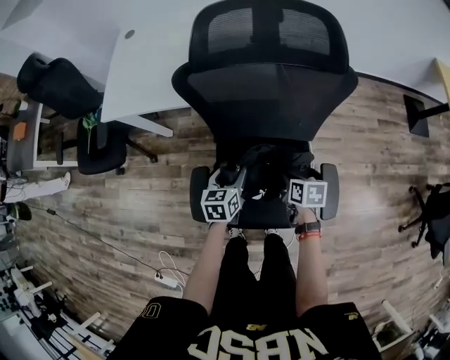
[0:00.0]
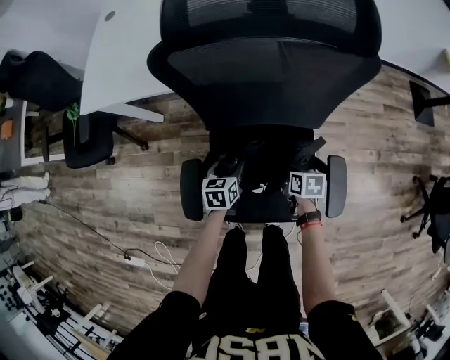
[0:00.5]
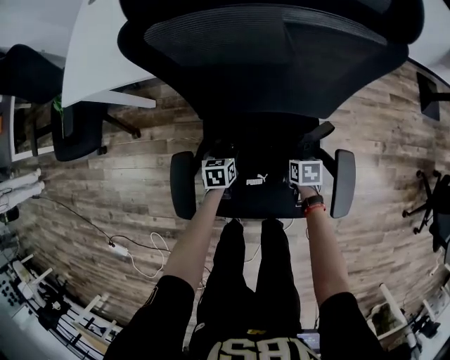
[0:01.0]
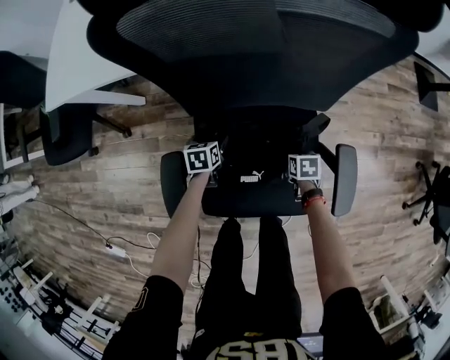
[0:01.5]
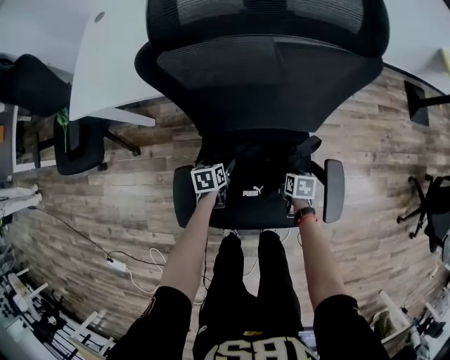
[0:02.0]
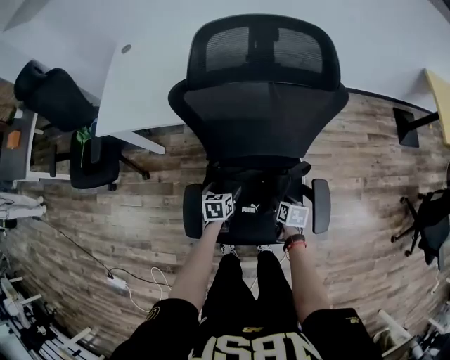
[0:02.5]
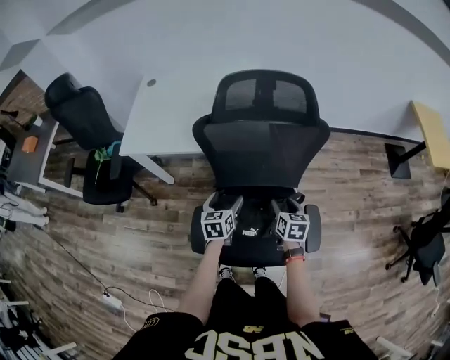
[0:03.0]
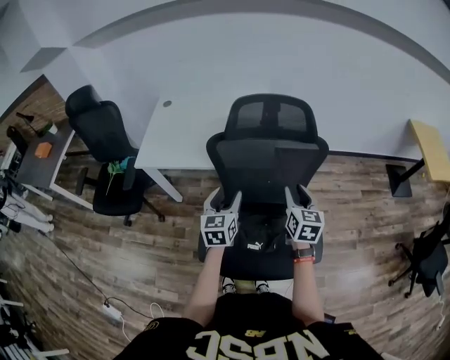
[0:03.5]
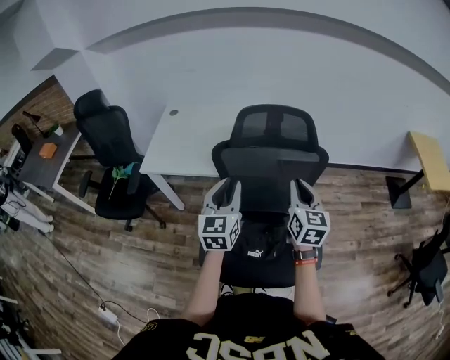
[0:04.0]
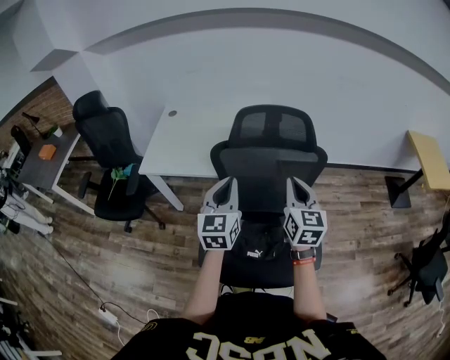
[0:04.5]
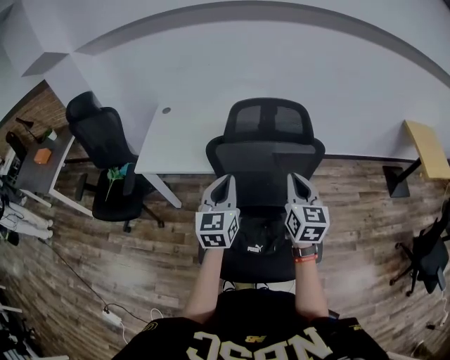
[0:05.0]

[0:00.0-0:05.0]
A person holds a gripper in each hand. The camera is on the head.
0:00.0 to 0:02.5: Both grippers travel together downward, roughly 10 cm. The left gripper opens. Meanwhile the right gripper opens.
0:02.5 to 0:05.0: Both grippers move upward, roughly 50 cm. The left gripper points its fingers approximately 50 degrees further upward, and closes. The right gripper points its fingers some 50 degrees further upward, and closes up.

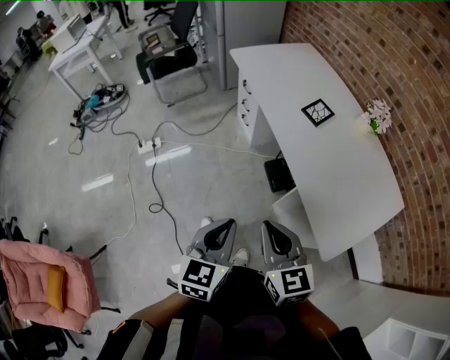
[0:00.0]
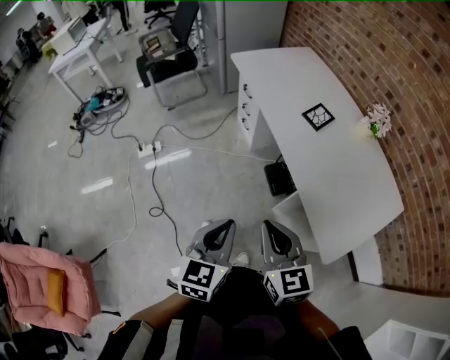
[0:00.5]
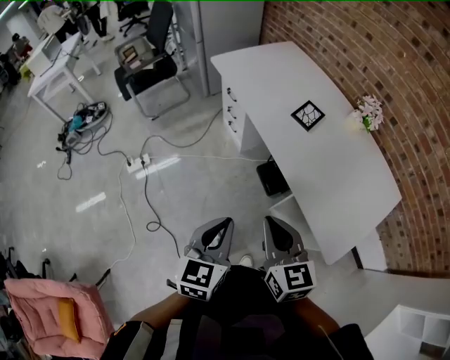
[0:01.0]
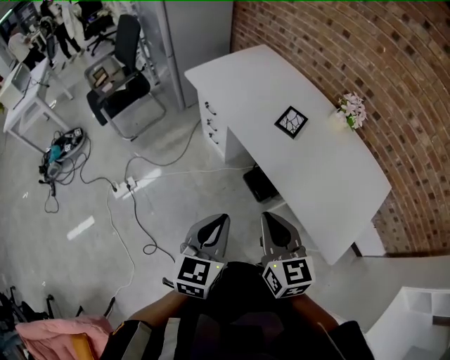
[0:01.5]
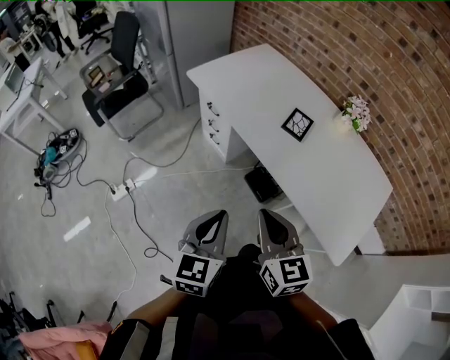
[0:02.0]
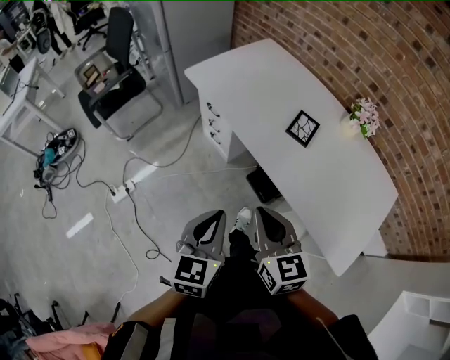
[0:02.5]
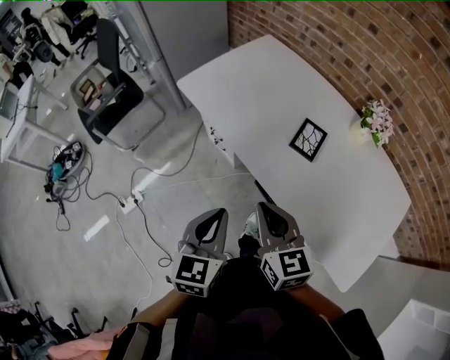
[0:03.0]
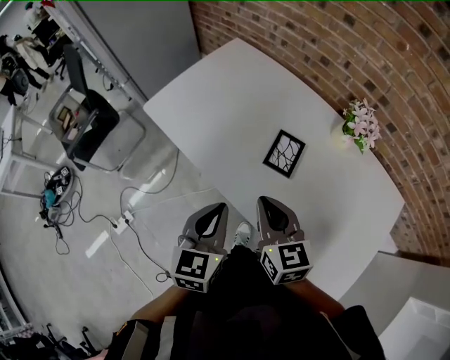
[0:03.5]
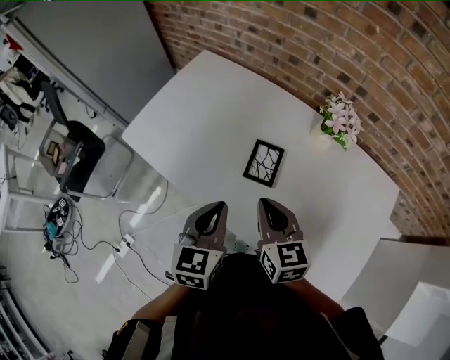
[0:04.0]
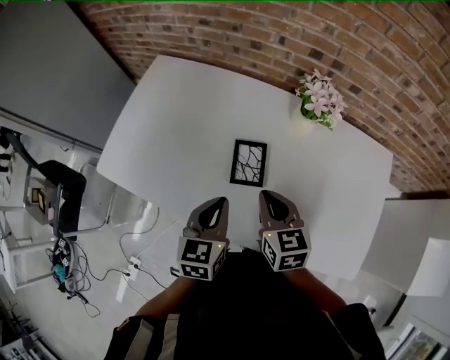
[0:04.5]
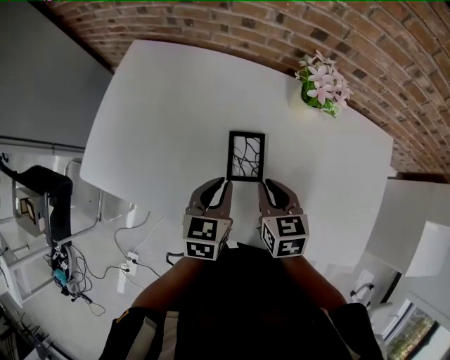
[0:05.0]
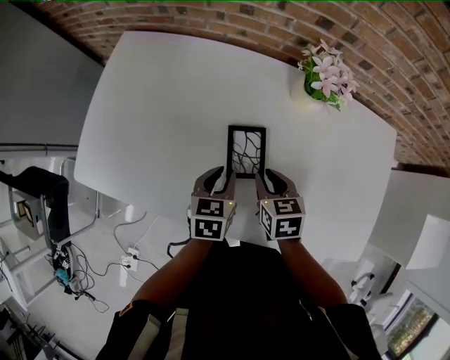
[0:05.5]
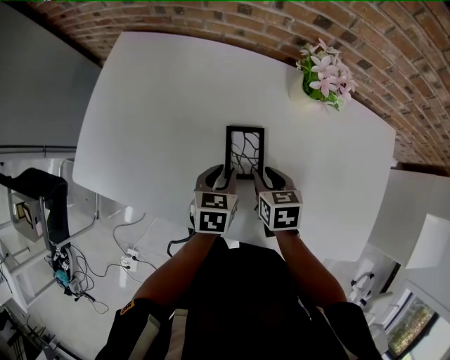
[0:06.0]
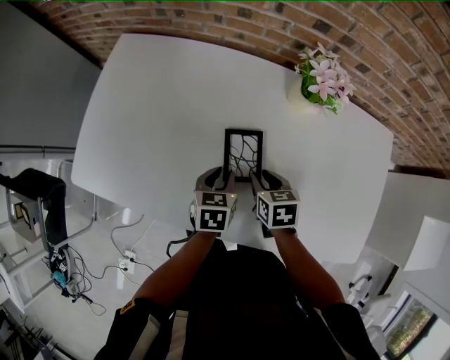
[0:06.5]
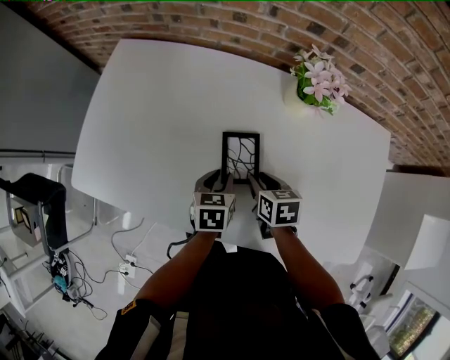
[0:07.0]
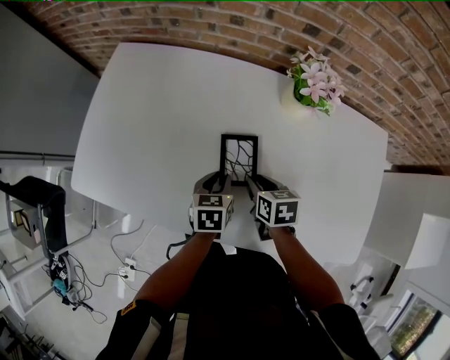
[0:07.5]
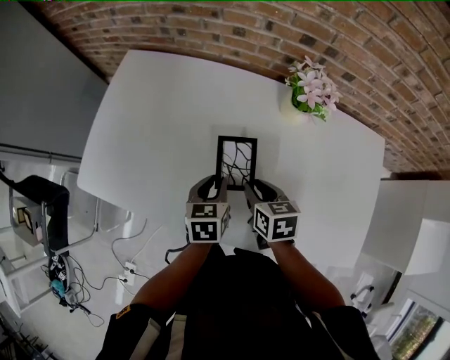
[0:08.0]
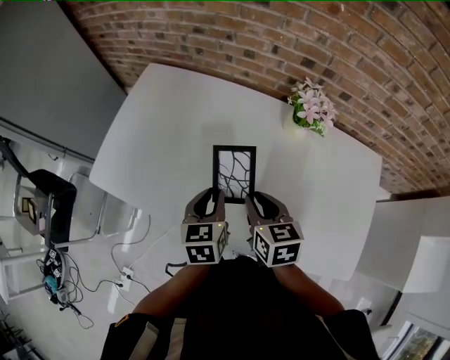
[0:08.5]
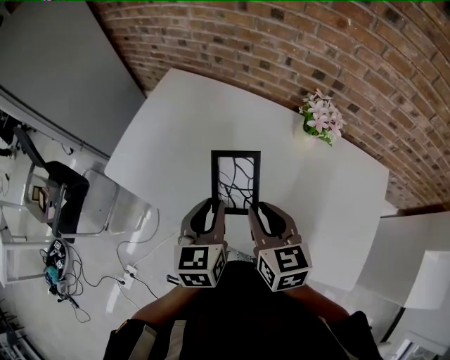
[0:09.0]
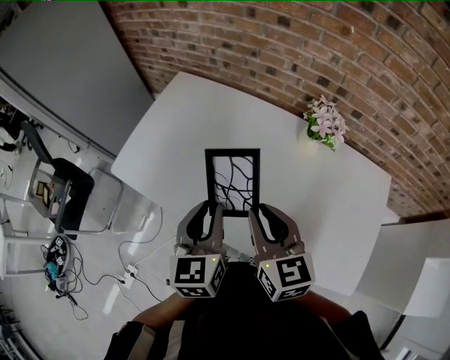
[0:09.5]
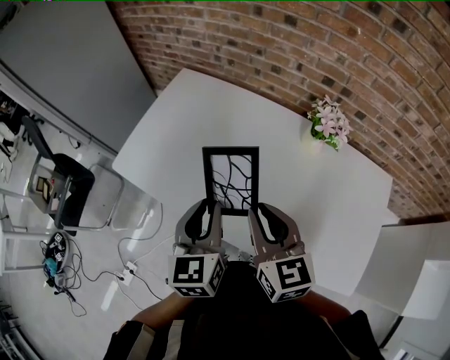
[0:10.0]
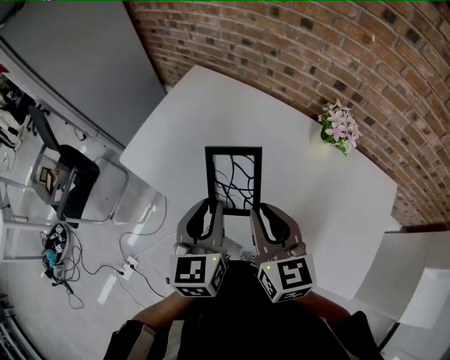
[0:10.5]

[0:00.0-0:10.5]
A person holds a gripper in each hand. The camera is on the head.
0:00.0 to 0:02.0: Both grippers move forward and to the left, approximately 20 cm. The right gripper rotates roughly 20 degrees.
0:02.0 to 0:04.0: The grippers both shift forward and to the right by approximately 35 cm.
0:04.0 to 0:06.5: The grippers both shift downward and forward by about 25 cm. The right gripper angles its fingers downward, by roughly 30 degrees, and opens up. The left gripper swivels some 30 degrees, and opens.
0:06.5 to 0:08.5: Both grippers move upward, some 15 cm. The left gripper rotates roughly 20 degrees.
0:08.5 to 0:10.5: The right gripper moves upward and to the left, approximately 15 cm, and changes its angle by roughly 20 degrees; the left gripper moves upward, to the left and backward, roughly 15 cm, and rotates roughly 20 degrees.

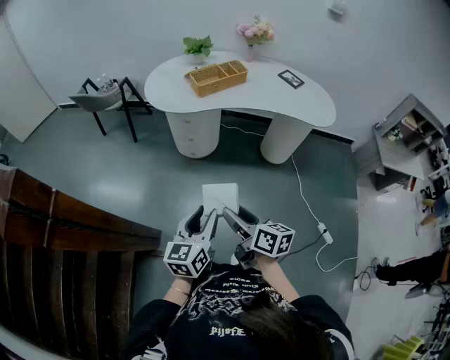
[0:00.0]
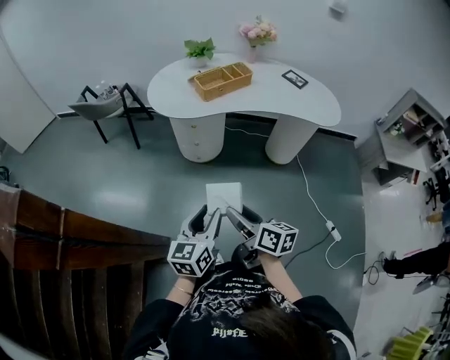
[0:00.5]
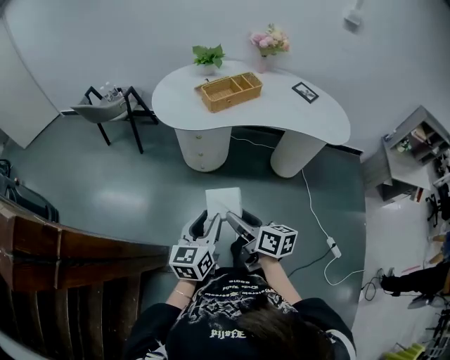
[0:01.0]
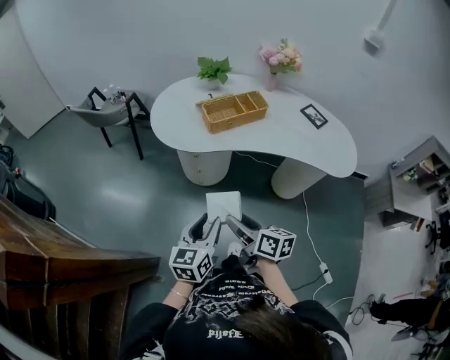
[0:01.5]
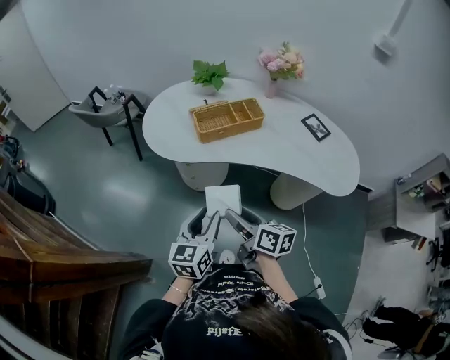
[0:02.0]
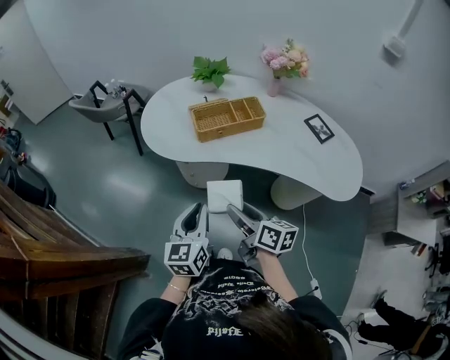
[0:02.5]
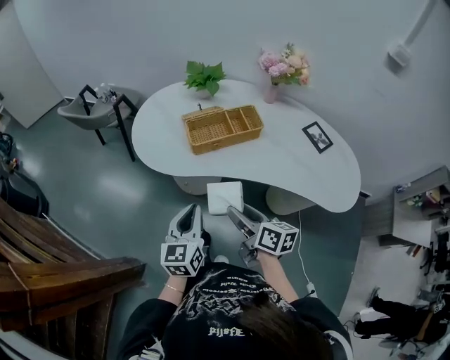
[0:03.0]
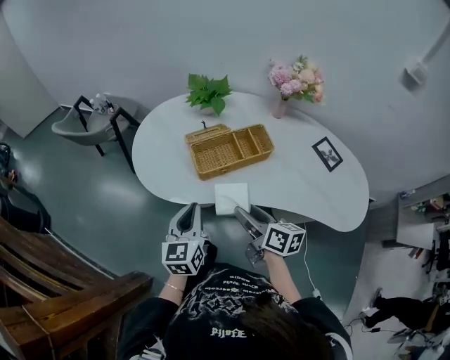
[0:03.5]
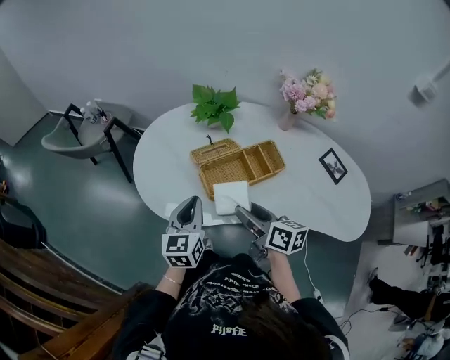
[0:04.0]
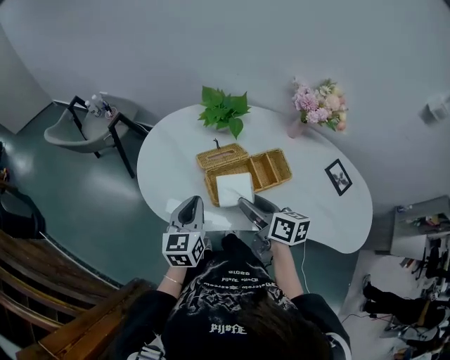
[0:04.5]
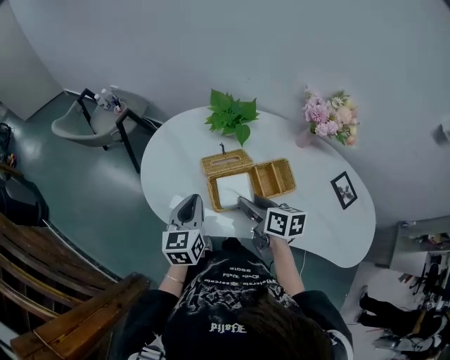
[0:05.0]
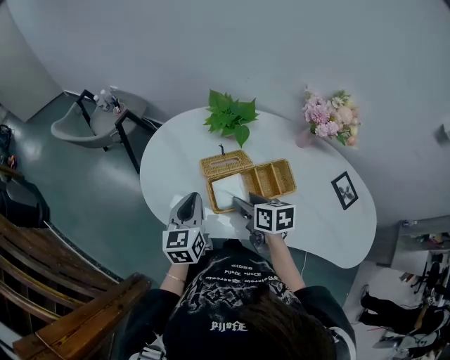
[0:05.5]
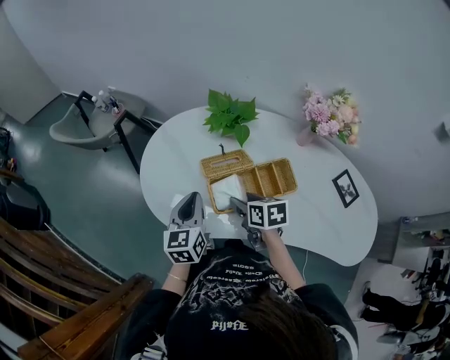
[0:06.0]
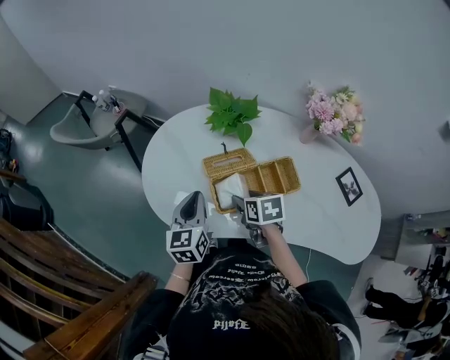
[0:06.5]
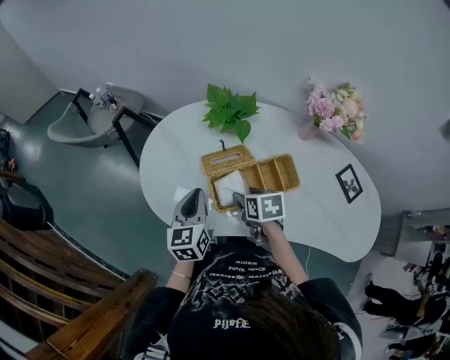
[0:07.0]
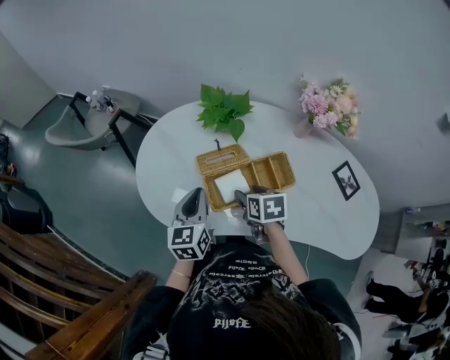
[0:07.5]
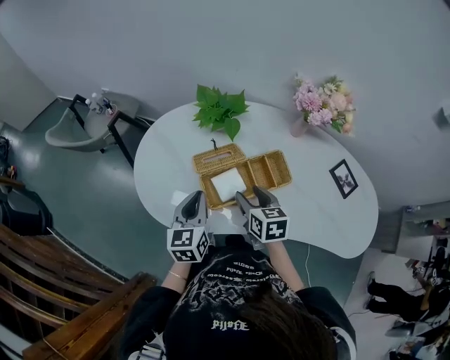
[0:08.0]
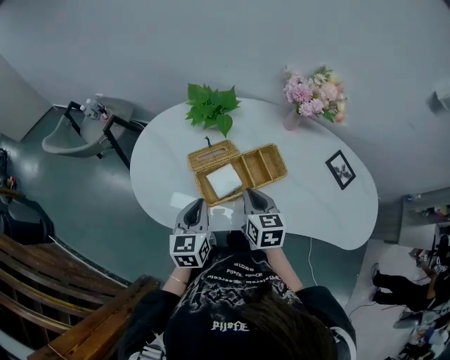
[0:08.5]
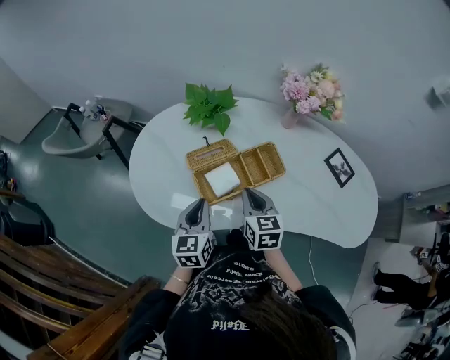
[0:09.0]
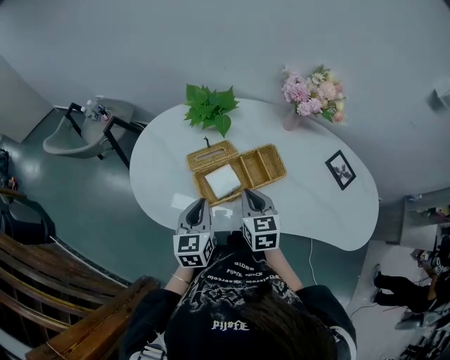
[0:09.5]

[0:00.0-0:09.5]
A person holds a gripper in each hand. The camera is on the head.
0:00.0 to 0:02.0: Both grippers move forward, roughly 30 cm.
0:02.0 to 0:04.0: Both grippers move forward, approximately 35 cm. The left gripper closes.
0:04.0 to 0:05.5: The left gripper shifts roughly 5 cm forward; the right gripper shifts approximately 10 cm forward, and swivels some 30 degrees.
0:05.5 to 0:07.5: The grippers make only small movements.
0:07.5 to 0:09.5: The left gripper shifts by approximately 5 cm; the right gripper shifts by approximately 5 cm, changes its angle by about 30 degrees, and closes.

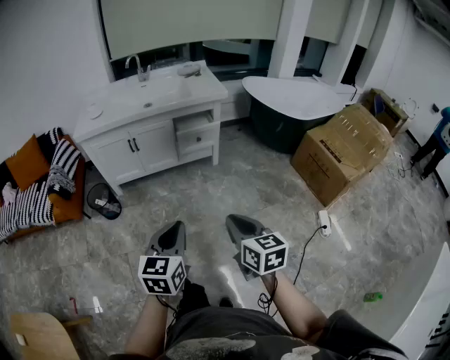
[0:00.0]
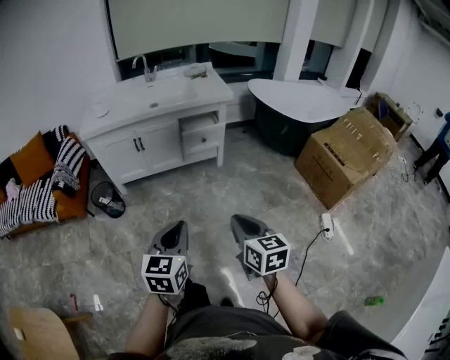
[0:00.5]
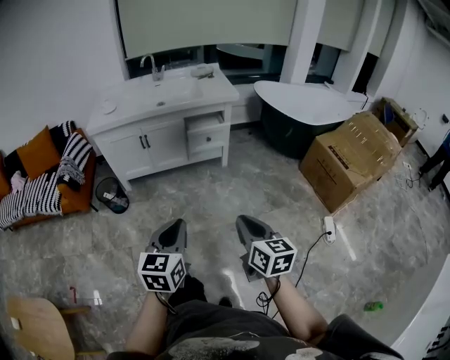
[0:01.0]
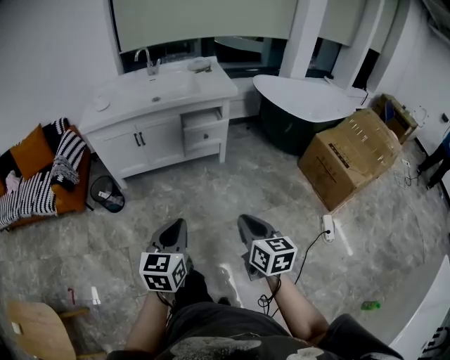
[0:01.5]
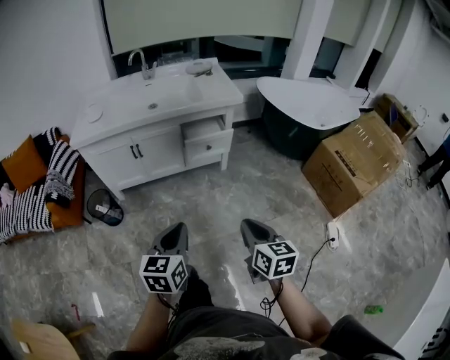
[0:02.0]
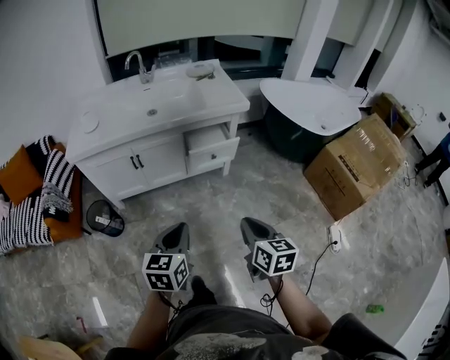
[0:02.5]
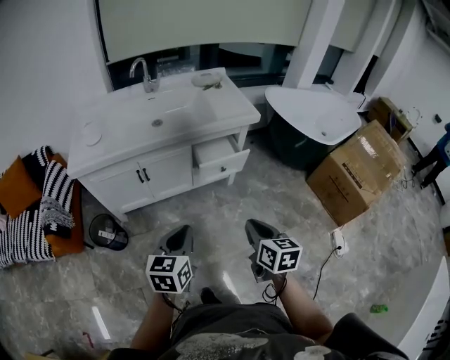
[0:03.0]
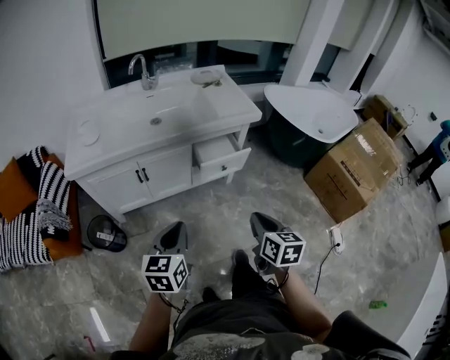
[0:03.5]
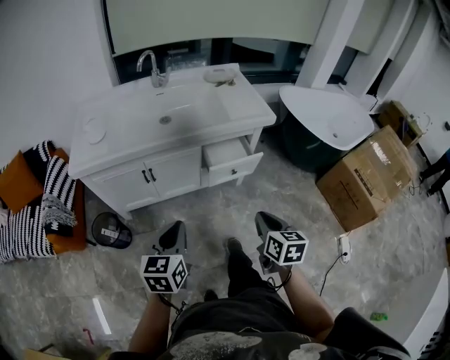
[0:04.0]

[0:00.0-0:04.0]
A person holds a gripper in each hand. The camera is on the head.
0:00.0 to 0:02.0: Both grippers travel together forward, about 15 cm.
0:02.0 to 0:04.0: The grippers both shift forward and to the left by some 25 cm.
